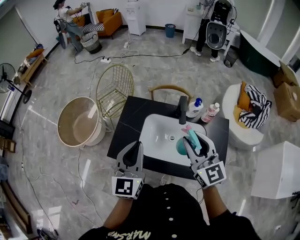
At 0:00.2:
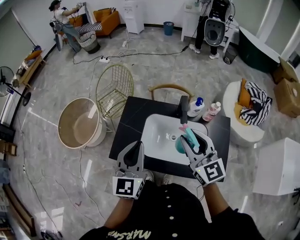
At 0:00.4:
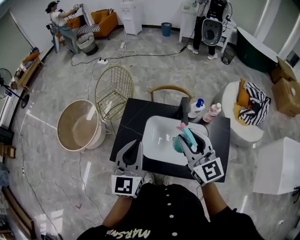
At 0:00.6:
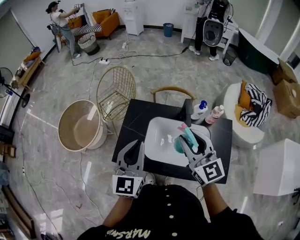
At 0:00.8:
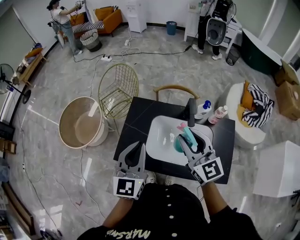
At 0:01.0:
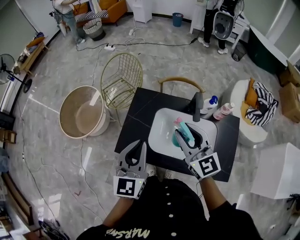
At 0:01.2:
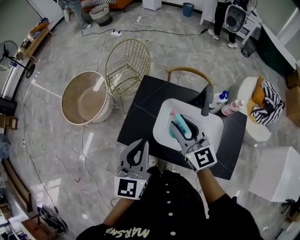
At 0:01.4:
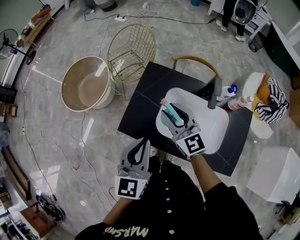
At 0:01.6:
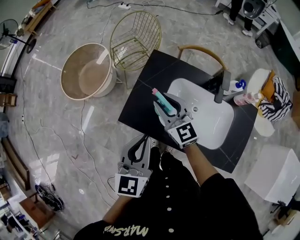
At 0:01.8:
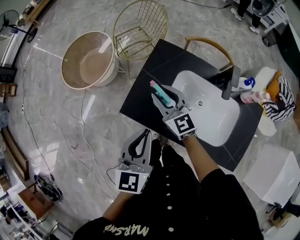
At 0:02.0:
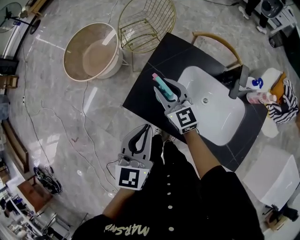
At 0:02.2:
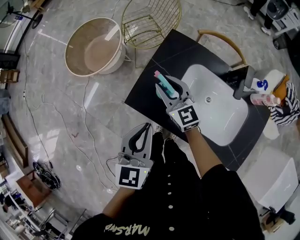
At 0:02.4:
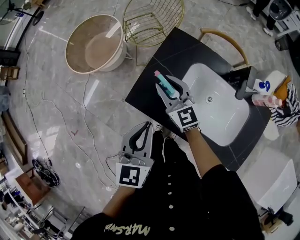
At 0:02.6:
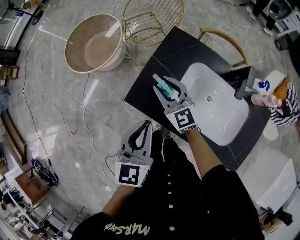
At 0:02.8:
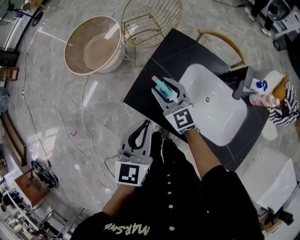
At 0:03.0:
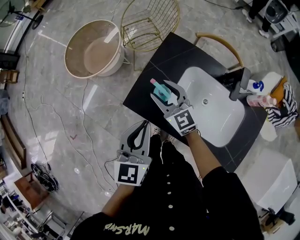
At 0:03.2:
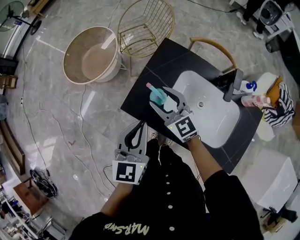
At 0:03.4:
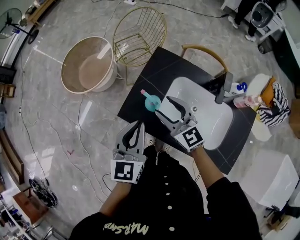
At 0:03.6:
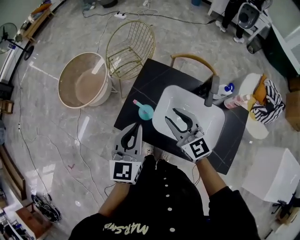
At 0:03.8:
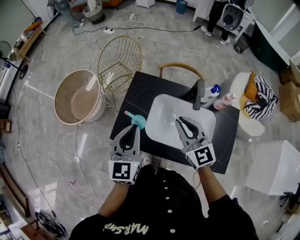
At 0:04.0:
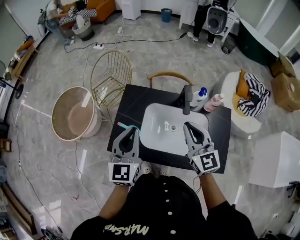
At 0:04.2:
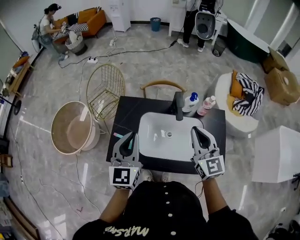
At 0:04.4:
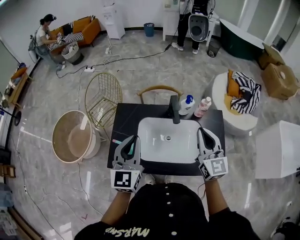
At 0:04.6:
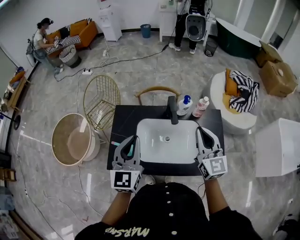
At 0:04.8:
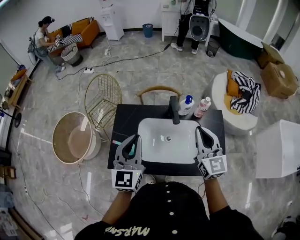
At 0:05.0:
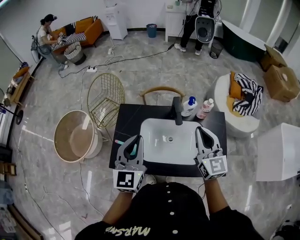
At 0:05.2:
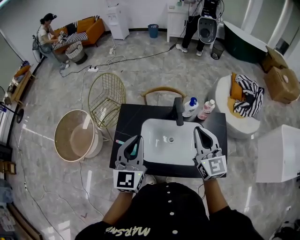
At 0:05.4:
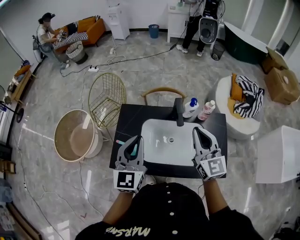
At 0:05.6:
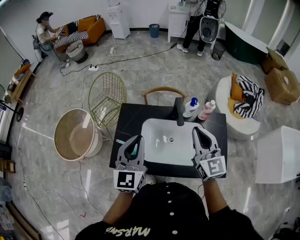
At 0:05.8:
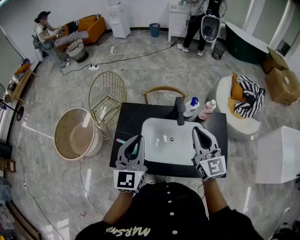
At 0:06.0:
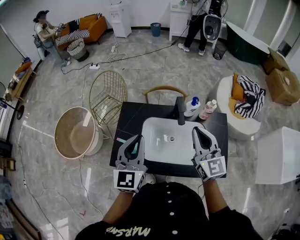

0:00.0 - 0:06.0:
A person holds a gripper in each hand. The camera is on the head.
0:00.0 - 0:01.6: The right gripper shifts approximately 30 cm to the left, downward and forward, and turns by approximately 20 degrees, while the left gripper heads downward and to the left, covering roughly 15 cm.
0:01.6 - 0:03.0: The right gripper travels downward and to the left by roughly 10 cm, and opens. The left gripper moves about 5 cm.
0:03.0 - 0:04.4: The left gripper ends up roughly 20 cm from where it was, and rotates some 30 degrees. Meanwhile the right gripper shifts by approximately 40 cm, rotates approximately 50 degrees, and closes its fingers.
0:04.4 - 0:06.0: The right gripper moves about 5 cm.

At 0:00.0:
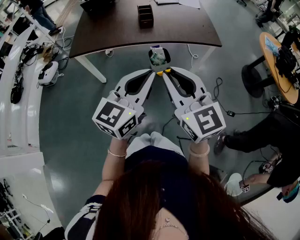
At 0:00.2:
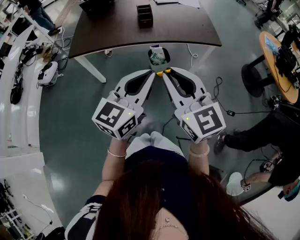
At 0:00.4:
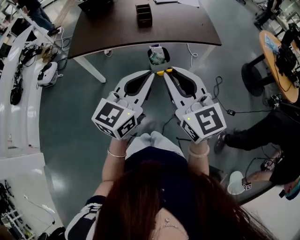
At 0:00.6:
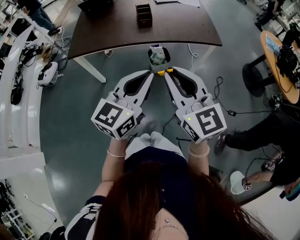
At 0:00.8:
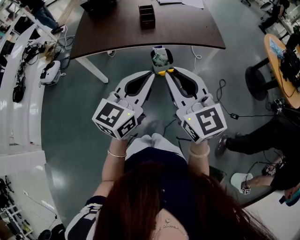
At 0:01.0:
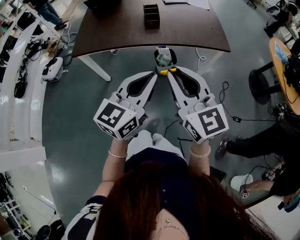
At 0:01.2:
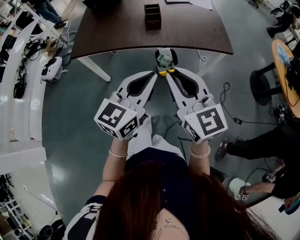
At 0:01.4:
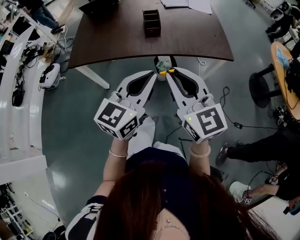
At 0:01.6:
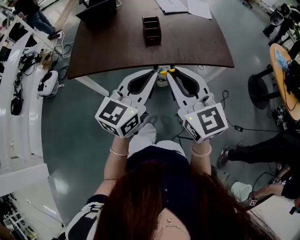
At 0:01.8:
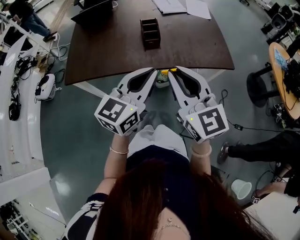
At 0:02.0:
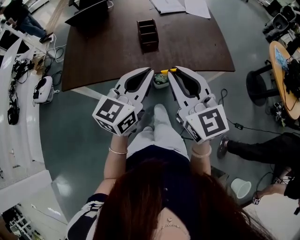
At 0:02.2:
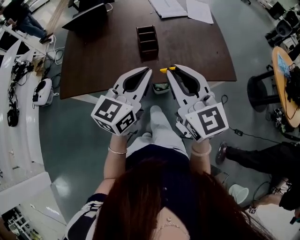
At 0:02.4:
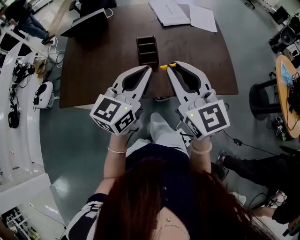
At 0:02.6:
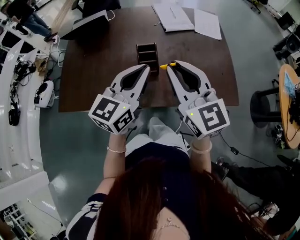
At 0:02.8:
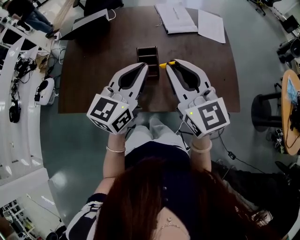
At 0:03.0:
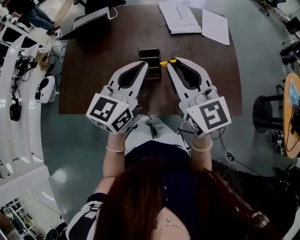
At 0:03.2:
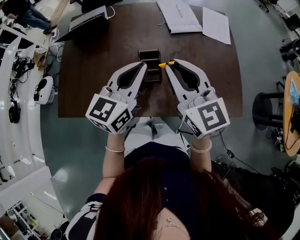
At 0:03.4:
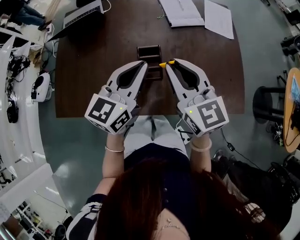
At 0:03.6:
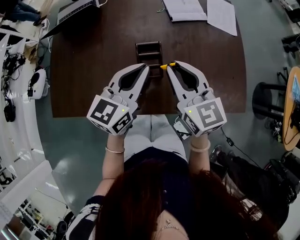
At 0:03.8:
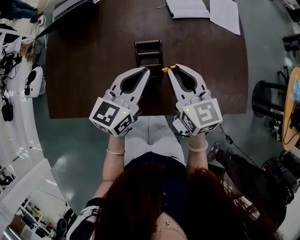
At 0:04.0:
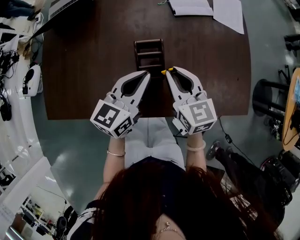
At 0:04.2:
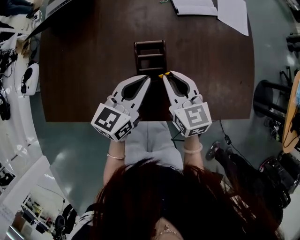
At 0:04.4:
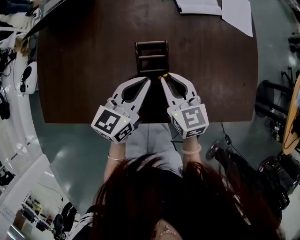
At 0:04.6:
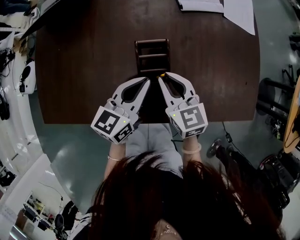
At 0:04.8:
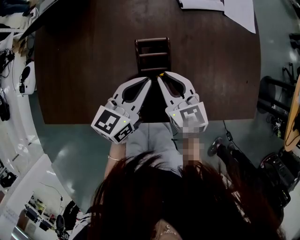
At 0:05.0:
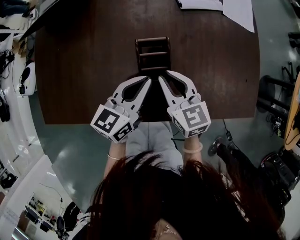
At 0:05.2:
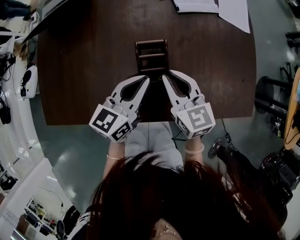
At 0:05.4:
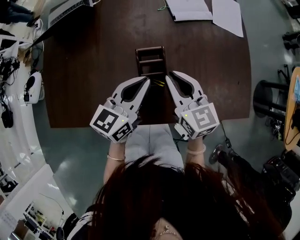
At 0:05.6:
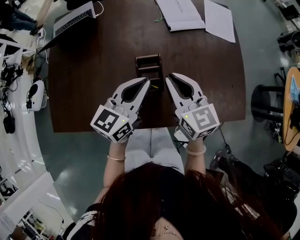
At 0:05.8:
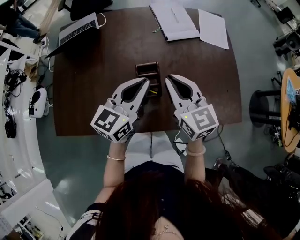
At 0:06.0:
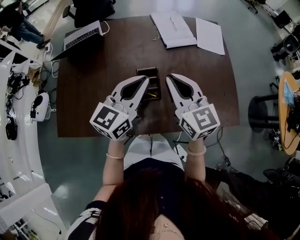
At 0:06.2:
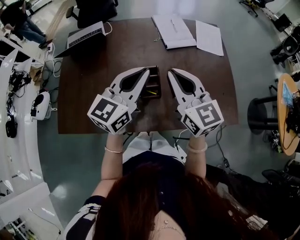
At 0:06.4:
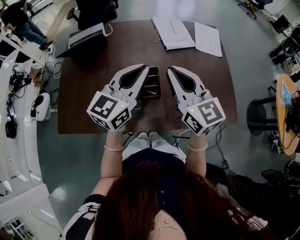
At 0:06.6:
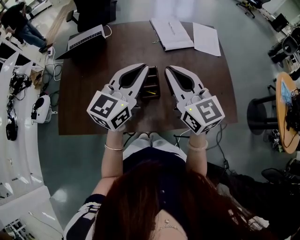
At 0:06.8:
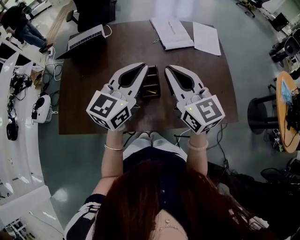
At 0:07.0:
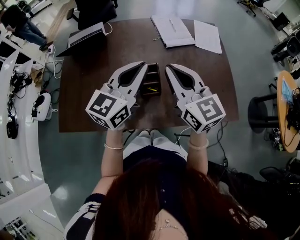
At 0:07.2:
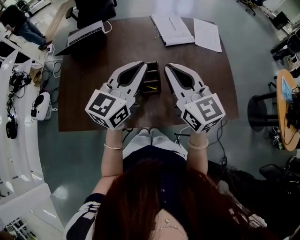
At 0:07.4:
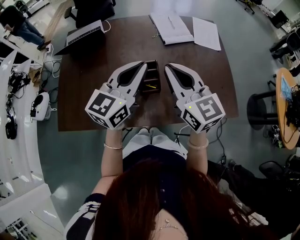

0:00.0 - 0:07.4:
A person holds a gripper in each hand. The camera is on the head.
0:00.0 - 0:01.4: Both grippers move forward, some 15 cm.
0:01.4 - 0:03.0: Both grippers are carried forward, some 40 cm.
0:03.0 - 0:04.4: Both grippers travel together downward, approximately 25 cm. The left gripper turns by about 20 degrees. Meanwhile the right gripper swivels about 30 degrees.
0:04.4 - 0:06.0: The two grippers go roughly 20 cm upward. The right gripper rotates approximately 20 degrees.
0:06.0 - 0:07.4: The right gripper shifts by approximately 5 cm.

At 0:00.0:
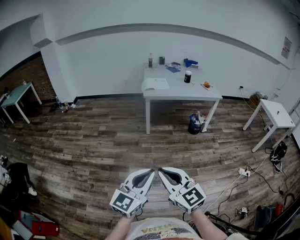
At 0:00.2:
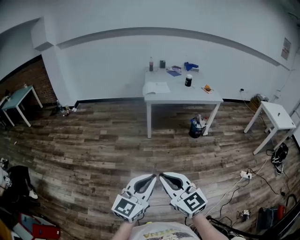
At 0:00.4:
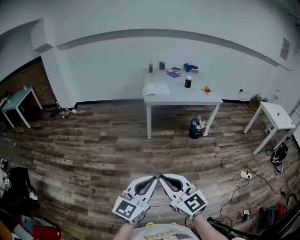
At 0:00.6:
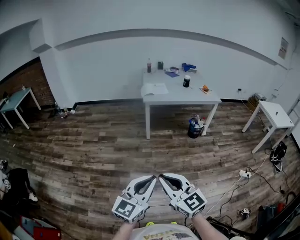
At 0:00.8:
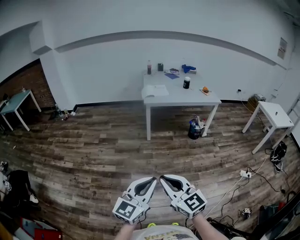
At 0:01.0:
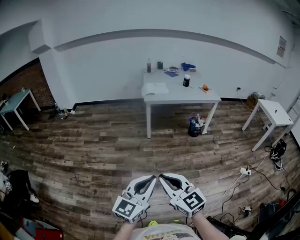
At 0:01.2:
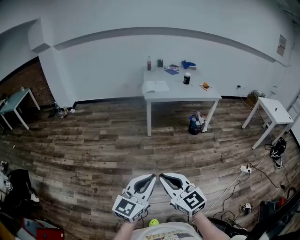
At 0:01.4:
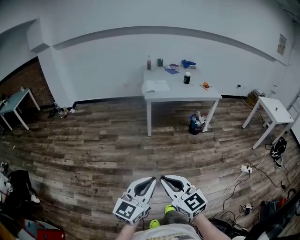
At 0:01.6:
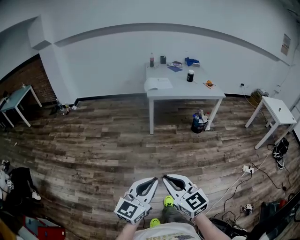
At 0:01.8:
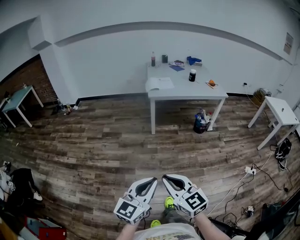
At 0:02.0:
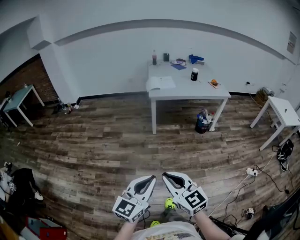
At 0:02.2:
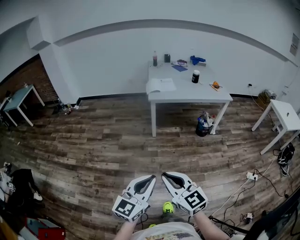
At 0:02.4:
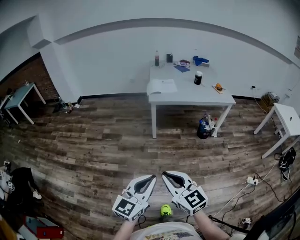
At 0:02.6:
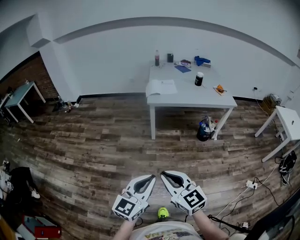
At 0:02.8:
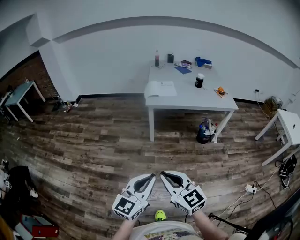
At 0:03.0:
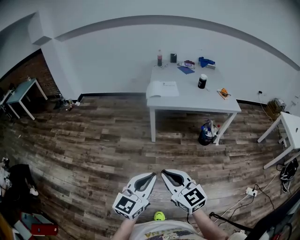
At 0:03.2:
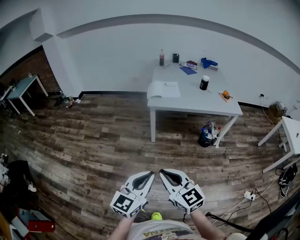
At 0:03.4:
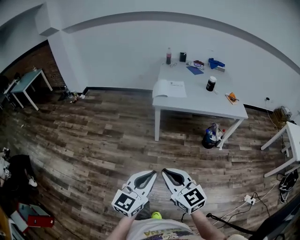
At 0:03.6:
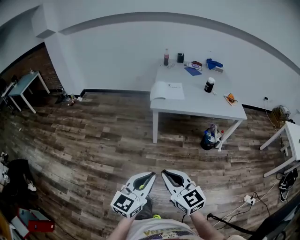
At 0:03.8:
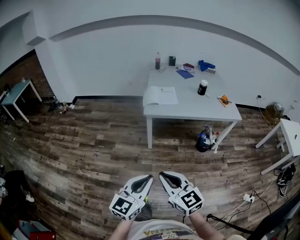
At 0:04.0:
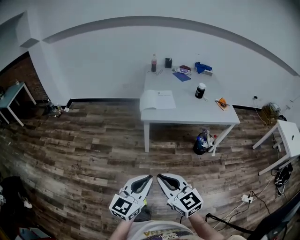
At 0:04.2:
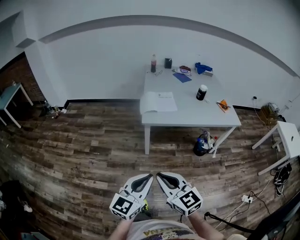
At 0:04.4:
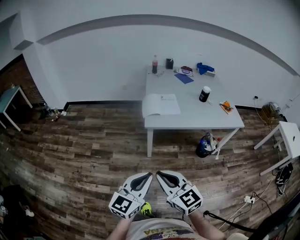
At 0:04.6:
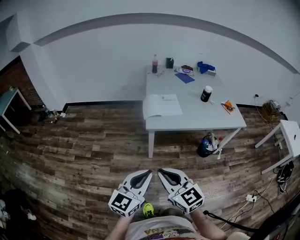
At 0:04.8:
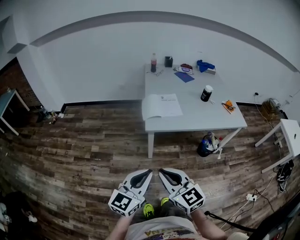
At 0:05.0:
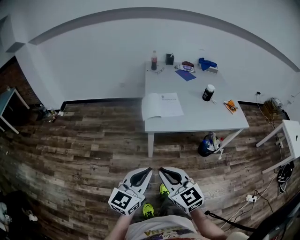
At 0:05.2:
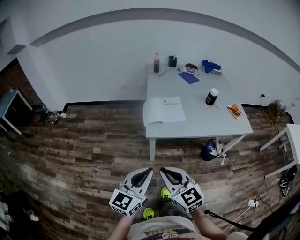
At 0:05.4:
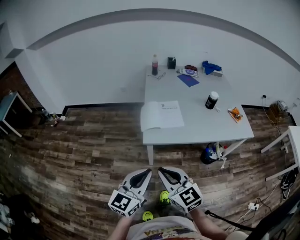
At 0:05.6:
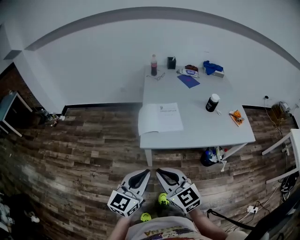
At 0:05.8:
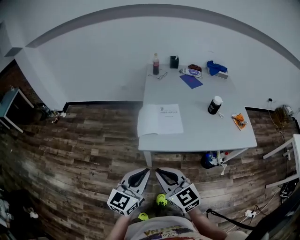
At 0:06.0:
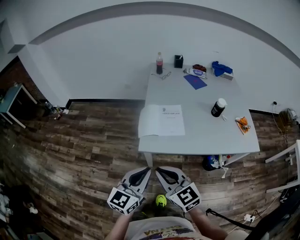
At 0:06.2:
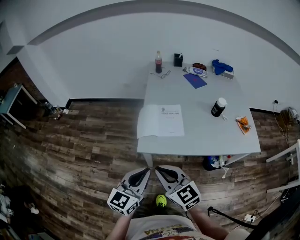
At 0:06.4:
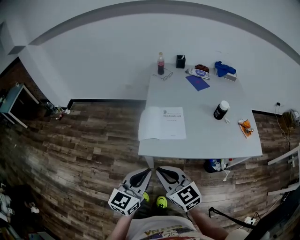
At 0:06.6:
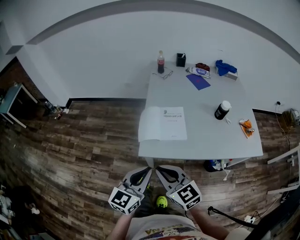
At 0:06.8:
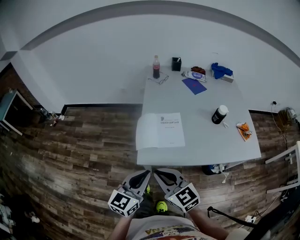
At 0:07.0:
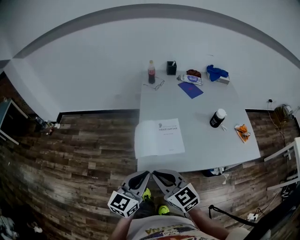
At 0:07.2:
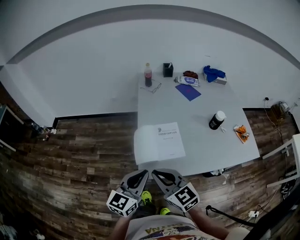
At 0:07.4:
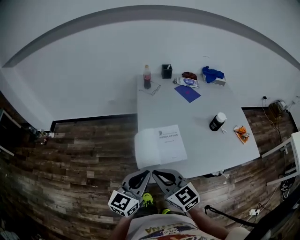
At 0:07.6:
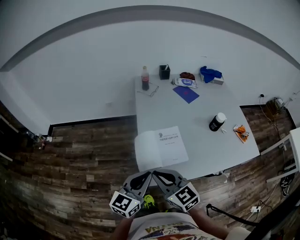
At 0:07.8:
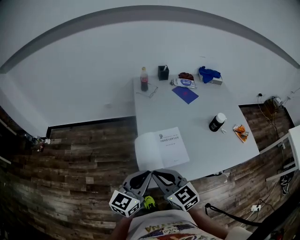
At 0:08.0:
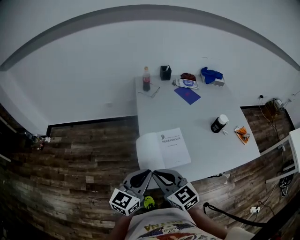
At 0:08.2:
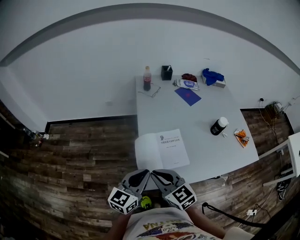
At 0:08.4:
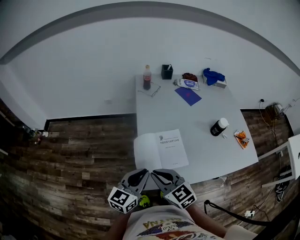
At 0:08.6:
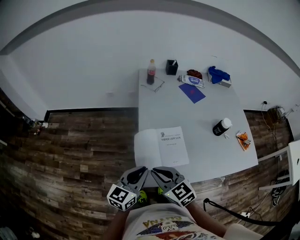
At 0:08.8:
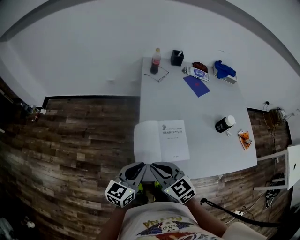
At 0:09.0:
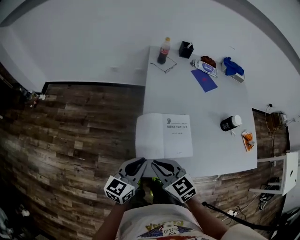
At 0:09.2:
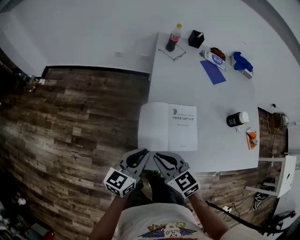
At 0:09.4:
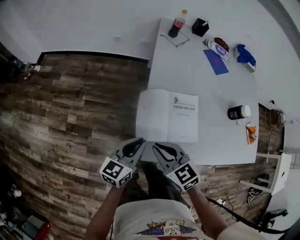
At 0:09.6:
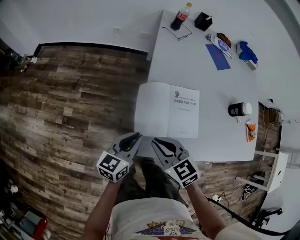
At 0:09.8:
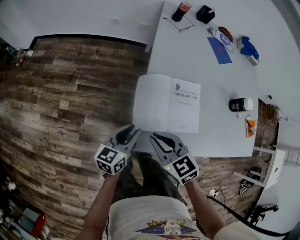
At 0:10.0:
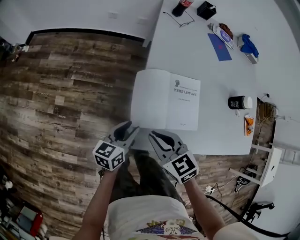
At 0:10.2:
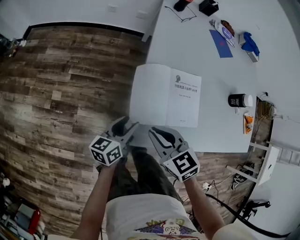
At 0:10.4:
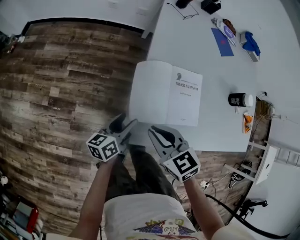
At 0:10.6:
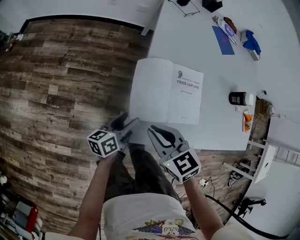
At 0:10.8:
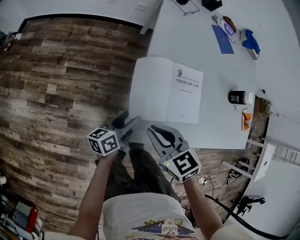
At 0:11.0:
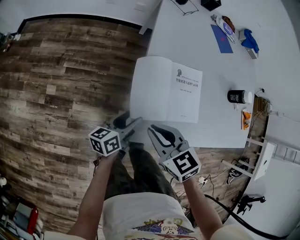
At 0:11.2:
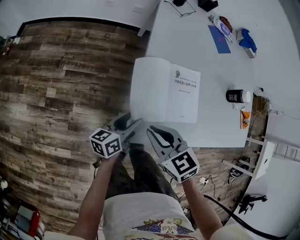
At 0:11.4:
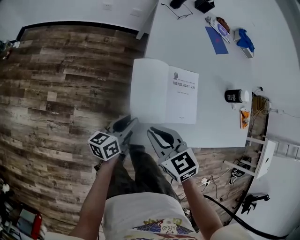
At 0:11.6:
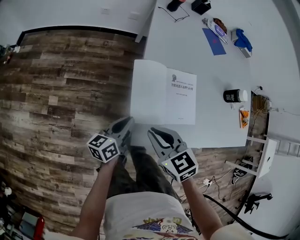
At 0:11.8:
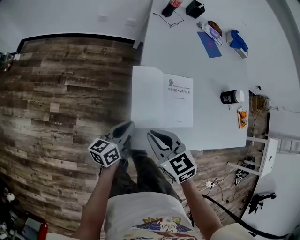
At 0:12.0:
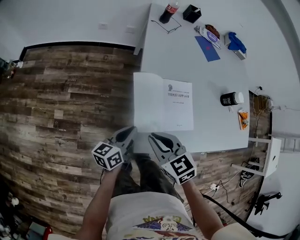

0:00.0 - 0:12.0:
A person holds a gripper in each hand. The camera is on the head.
0:00.0 - 0:01.6: The right gripper changes place by roughly 5 cm; the left gripper shifts by about 5 cm.
0:01.6 - 0:03.0: The two grippers go approximately 35 cm forward and to the right.
0:03.0 - 0:04.4: The two grippers go about 30 cm forward.
0:04.4 - 0:06.0: Both grippers move forward, roughly 35 cm.
0:06.0 - 0:07.6: Both grippers travel together forward, some 25 cm.
0:07.6 - 0:09.0: Both grippers travel together downward and forward, roughly 15 cm.
0:09.0 - 0:10.4: The left gripper heads downward, covering roughly 20 cm, turns by some 40 degrees, and opens its fingers; the right gripper is displaced downward by approximately 10 cm.
0:10.4 - 0:12.0: The left gripper moves upward, about 5 cm, and closes up.
